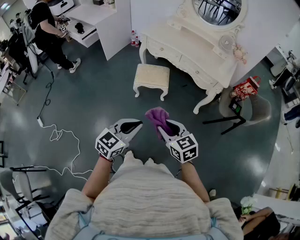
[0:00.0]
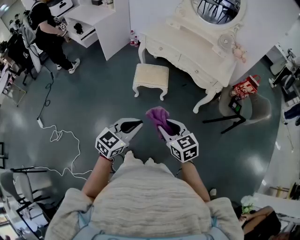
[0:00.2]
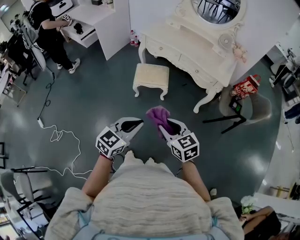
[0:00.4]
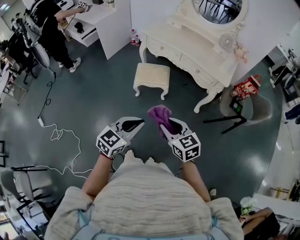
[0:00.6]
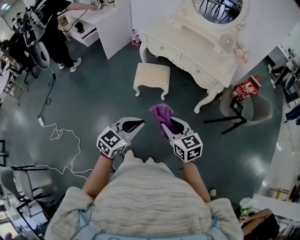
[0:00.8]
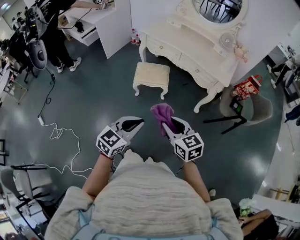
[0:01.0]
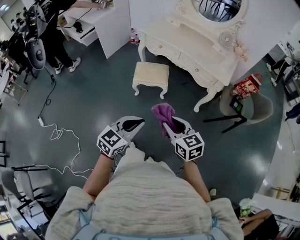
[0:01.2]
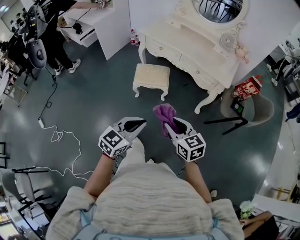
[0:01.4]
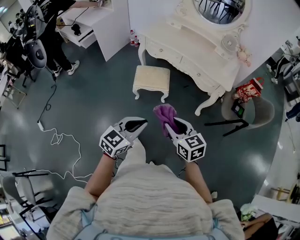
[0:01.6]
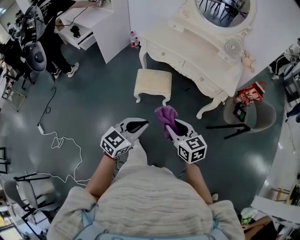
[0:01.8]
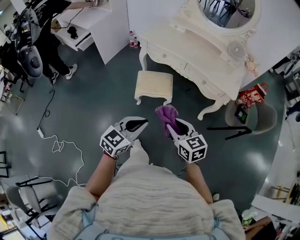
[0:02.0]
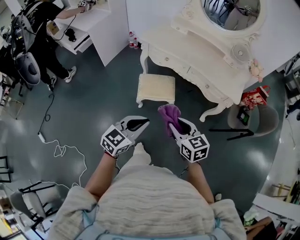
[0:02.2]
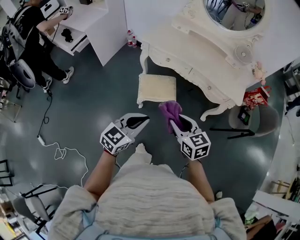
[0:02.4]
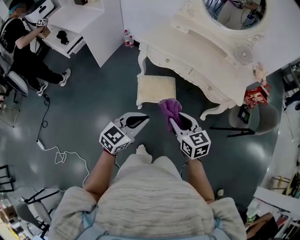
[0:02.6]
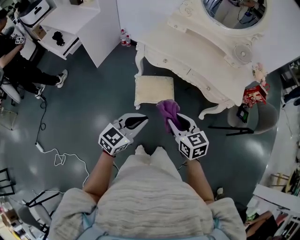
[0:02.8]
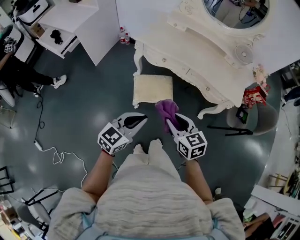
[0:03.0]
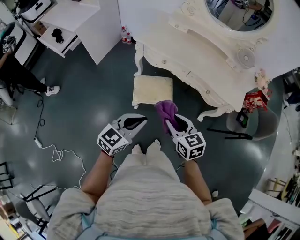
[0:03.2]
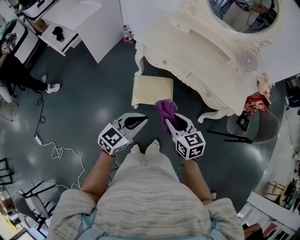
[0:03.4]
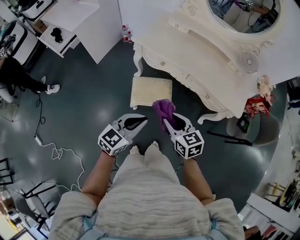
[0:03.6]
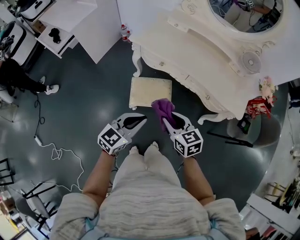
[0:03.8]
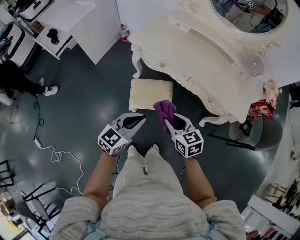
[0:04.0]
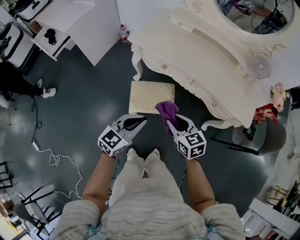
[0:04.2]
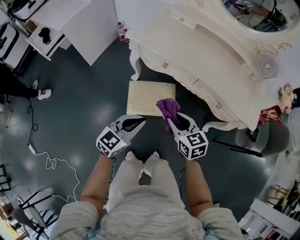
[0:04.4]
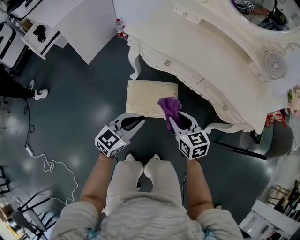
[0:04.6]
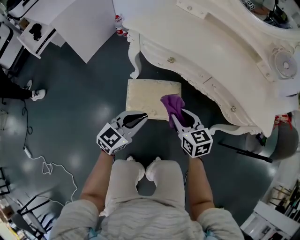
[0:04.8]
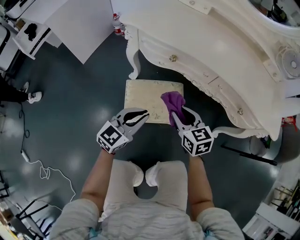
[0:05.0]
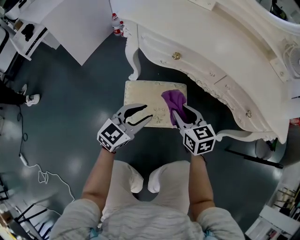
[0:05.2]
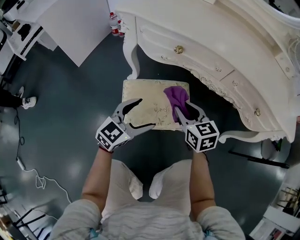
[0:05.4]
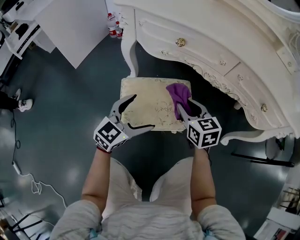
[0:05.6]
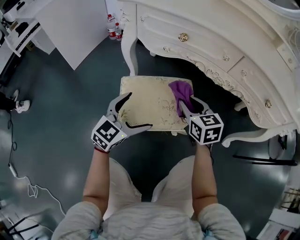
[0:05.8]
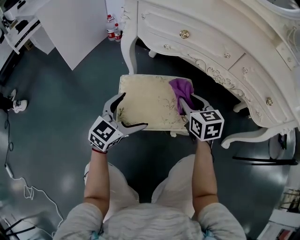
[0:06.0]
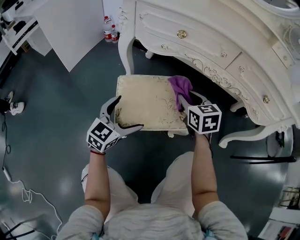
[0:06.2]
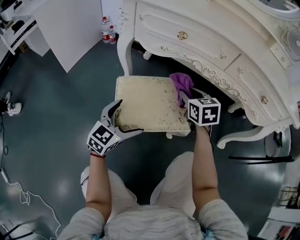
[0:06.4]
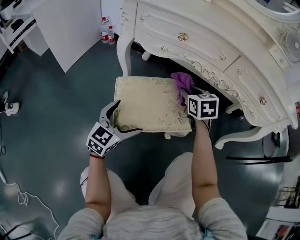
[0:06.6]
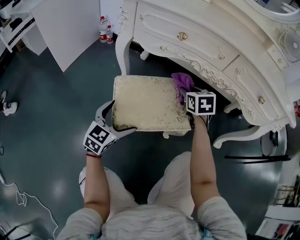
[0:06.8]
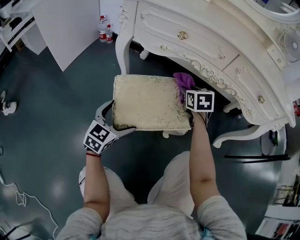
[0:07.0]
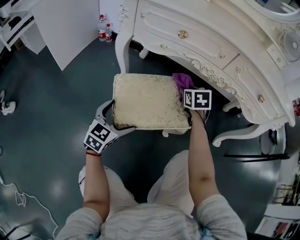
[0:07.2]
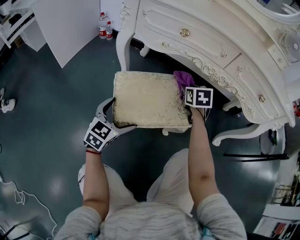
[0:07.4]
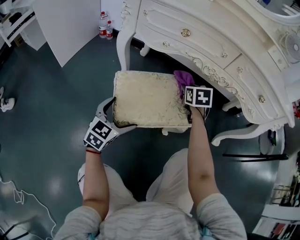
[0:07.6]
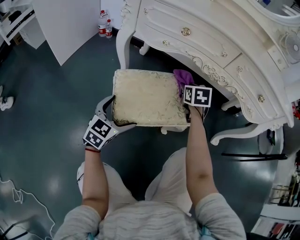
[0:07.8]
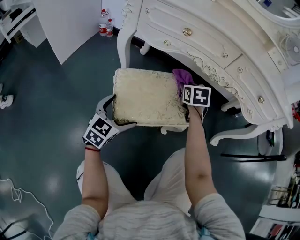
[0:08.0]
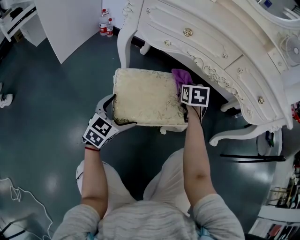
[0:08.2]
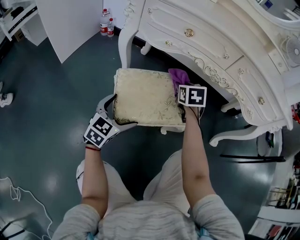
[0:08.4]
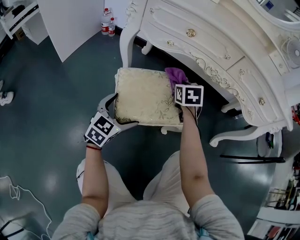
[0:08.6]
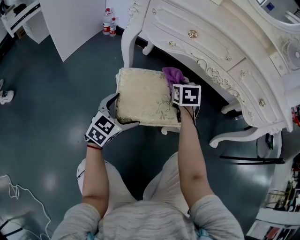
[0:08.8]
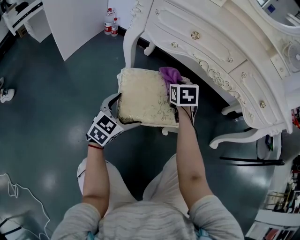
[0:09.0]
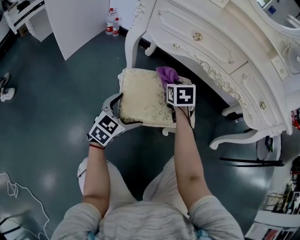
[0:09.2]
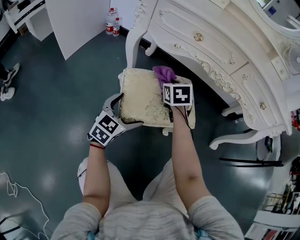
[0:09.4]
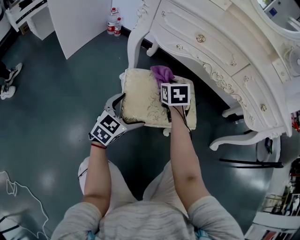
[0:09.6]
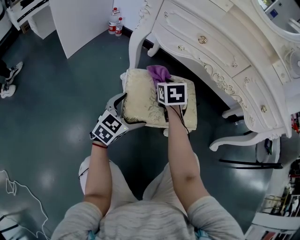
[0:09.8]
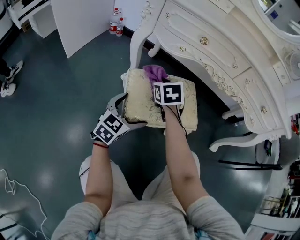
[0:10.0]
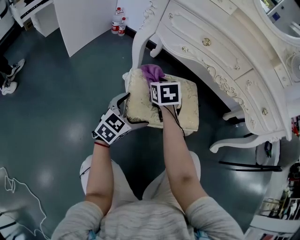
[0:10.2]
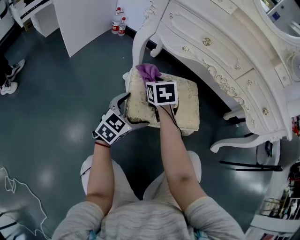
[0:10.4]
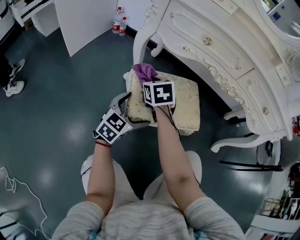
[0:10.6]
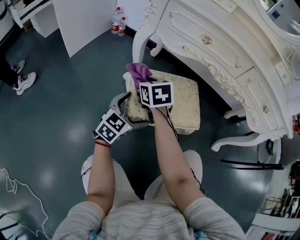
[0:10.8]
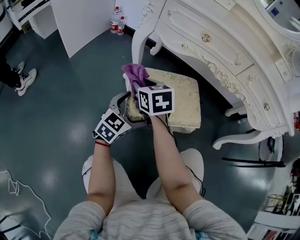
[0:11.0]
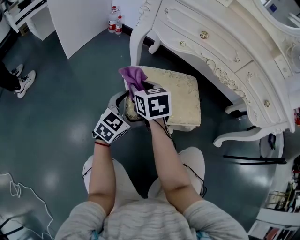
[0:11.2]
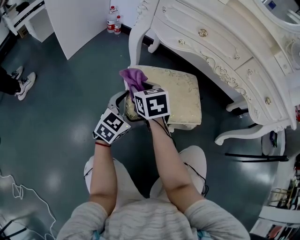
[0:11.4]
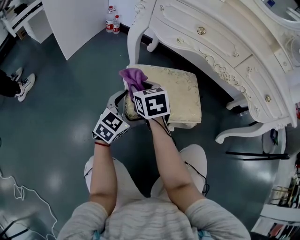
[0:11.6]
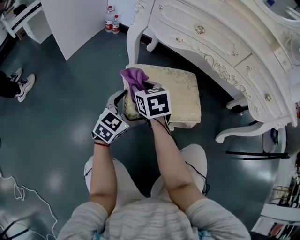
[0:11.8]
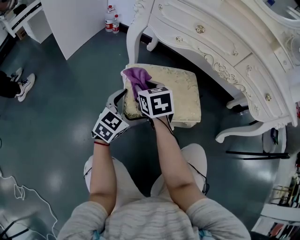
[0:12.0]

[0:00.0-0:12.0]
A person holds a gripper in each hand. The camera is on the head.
0:00.0 to 0:01.6: The grippers both shift forward by roughly 10 cm.
0:01.6 to 0:03.0: Both grippers move forward and to the left, approximately 25 cm.
0:03.0 to 0:04.4: The left gripper heads downward and forward, covering approximately 20 cm, while the right gripper heads forward and downward, covering about 25 cm.
0:04.4 to 0:06.0: The left gripper heads downward, covering approximately 35 cm, and opens. The right gripper goes some 35 cm downward and forward.
0:06.0 to 0:07.6: The left gripper travels downward by about 5 cm; the right gripper goes some 10 cm forward and downward, and rotates approximately 20 degrees.
0:07.6 to 0:09.0: The right gripper goes some 10 cm to the left.
0:09.0 to 0:10.4: The right gripper is displaced to the left by about 15 cm.
0:10.4 to 0:12.0: The right gripper goes some 5 cm backward.

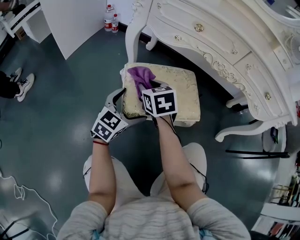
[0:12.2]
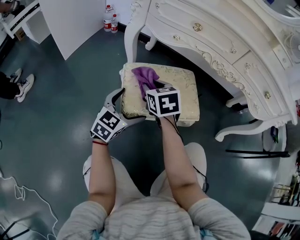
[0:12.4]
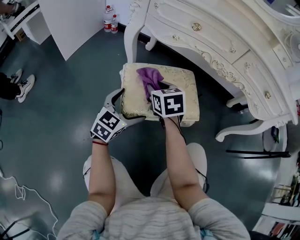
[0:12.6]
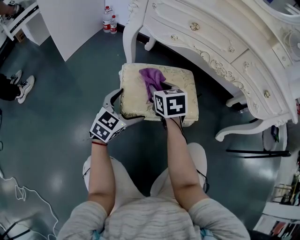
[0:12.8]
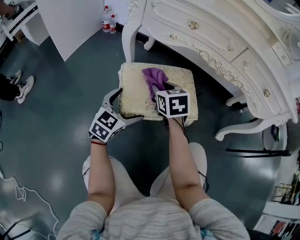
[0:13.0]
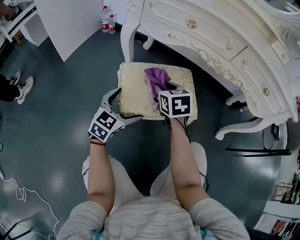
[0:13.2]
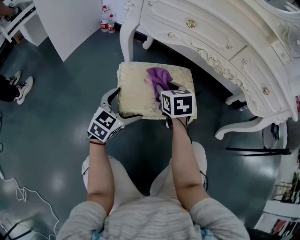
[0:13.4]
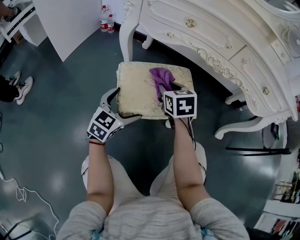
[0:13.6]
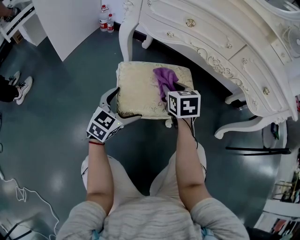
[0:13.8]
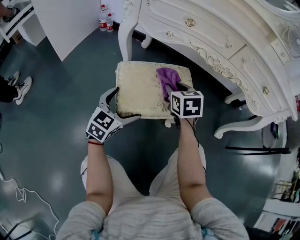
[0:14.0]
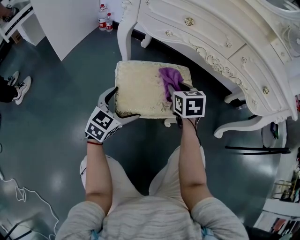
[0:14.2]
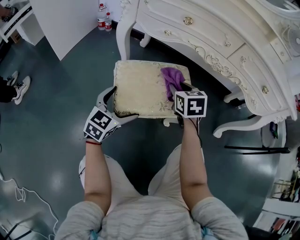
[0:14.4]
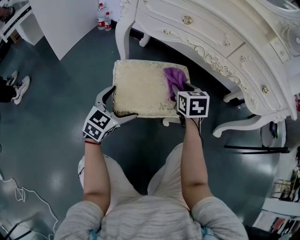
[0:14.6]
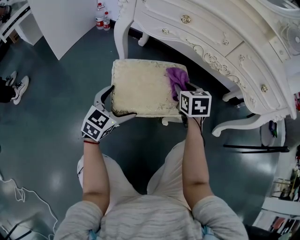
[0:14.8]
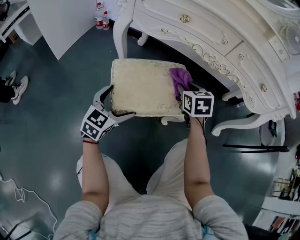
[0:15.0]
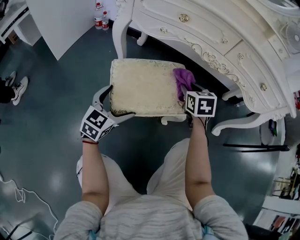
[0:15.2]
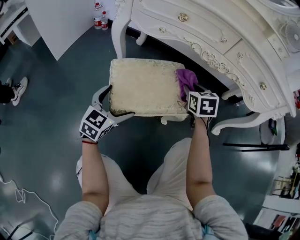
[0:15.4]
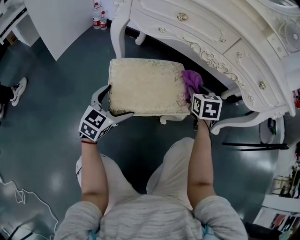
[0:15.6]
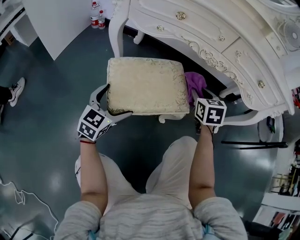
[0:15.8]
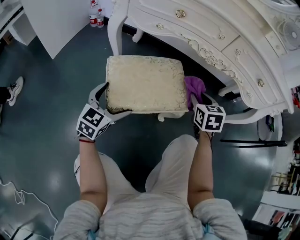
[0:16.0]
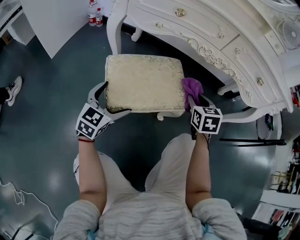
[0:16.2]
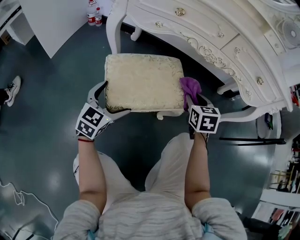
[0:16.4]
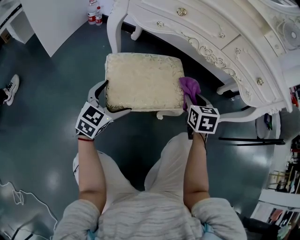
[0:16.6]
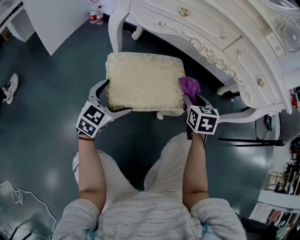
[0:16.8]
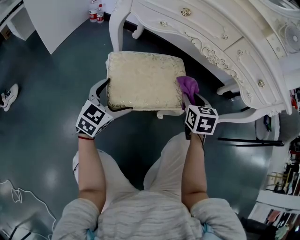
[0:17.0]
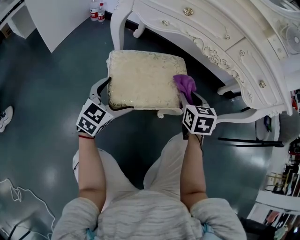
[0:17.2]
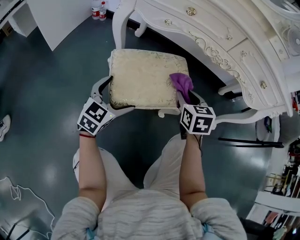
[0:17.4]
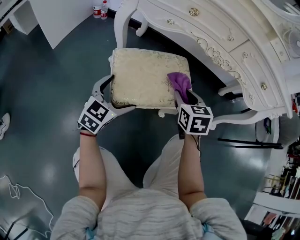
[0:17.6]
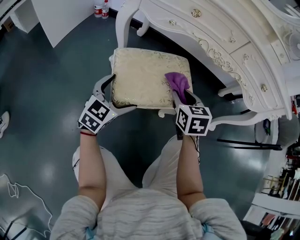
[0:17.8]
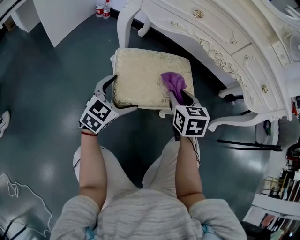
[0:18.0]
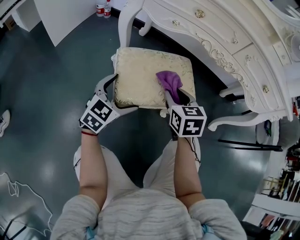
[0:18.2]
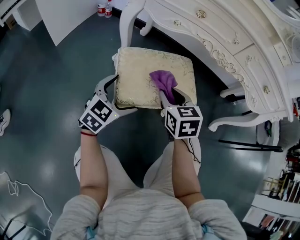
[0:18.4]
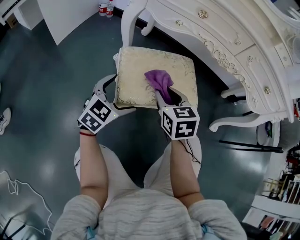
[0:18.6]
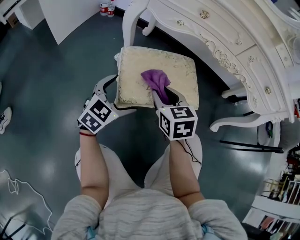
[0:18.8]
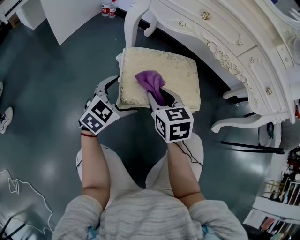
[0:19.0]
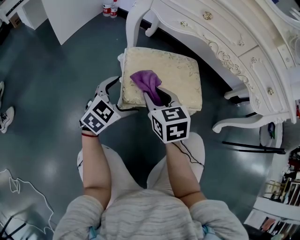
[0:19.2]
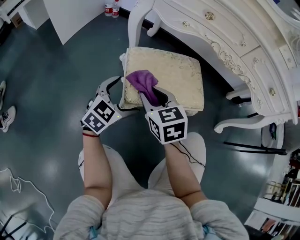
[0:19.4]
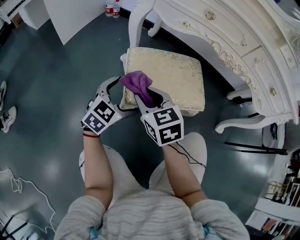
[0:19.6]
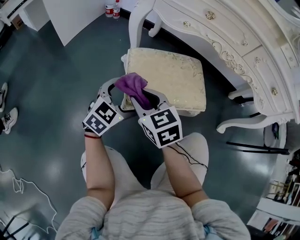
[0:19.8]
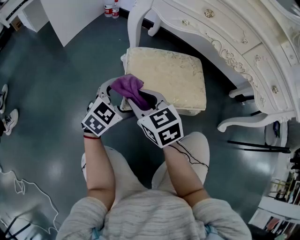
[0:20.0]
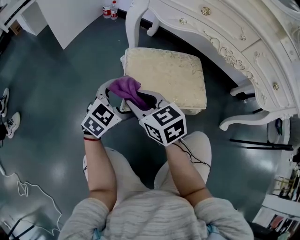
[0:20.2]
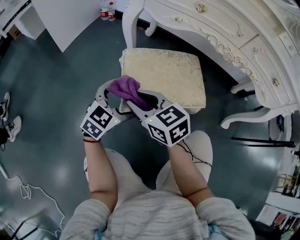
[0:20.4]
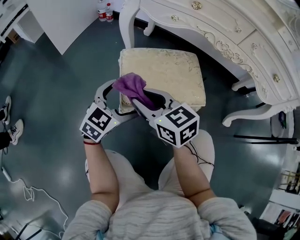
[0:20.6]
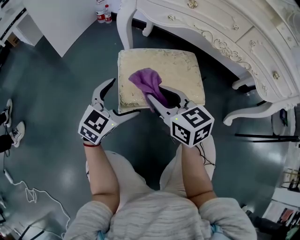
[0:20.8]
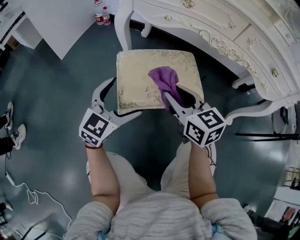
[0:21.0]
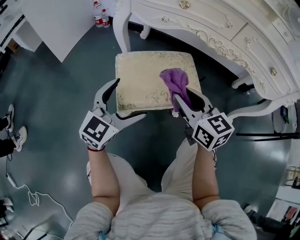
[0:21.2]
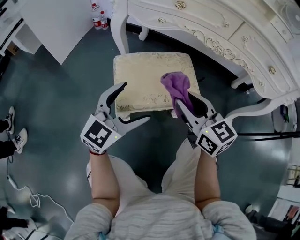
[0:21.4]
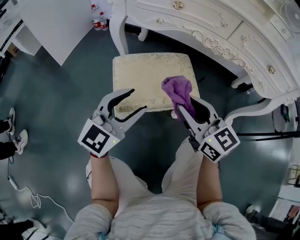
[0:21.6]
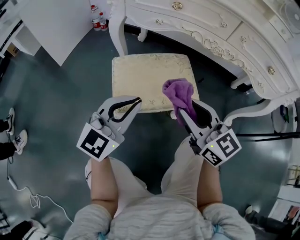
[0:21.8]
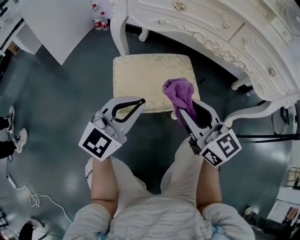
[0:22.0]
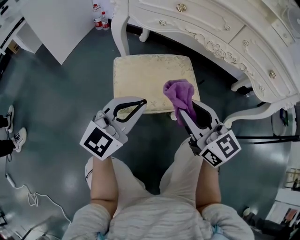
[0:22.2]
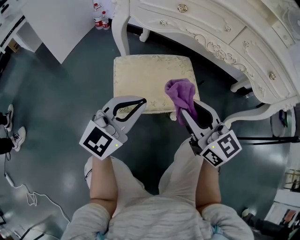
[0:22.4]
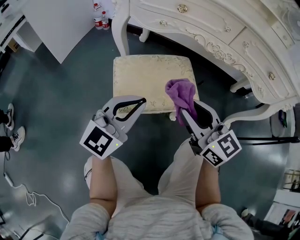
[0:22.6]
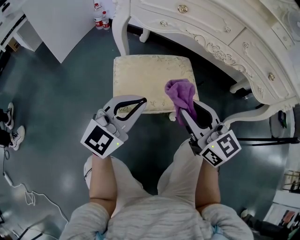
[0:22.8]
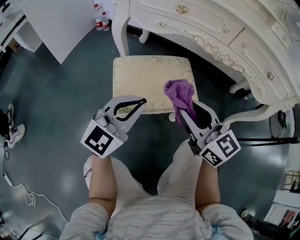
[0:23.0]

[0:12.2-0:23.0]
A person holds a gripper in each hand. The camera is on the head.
0:12.2 to 0:13.8: The right gripper heads to the right, covering approximately 10 cm.
0:13.8 to 0:15.2: The right gripper is displaced to the right by roughly 10 cm.
0:15.2 to 0:16.8: The right gripper moves to the right, approximately 5 cm.
0:16.8 to 0:18.4: The right gripper travels to the left and backward by approximately 15 cm.
0:18.4 to 0:20.0: The right gripper travels to the left and backward by approximately 15 cm, and swivels approximately 30 degrees.
0:20.0 to 0:21.4: The right gripper goes about 20 cm to the right and upward, and changes its angle by approximately 20 degrees. Meanwhile the left gripper shifts approximately 10 cm upward and to the right.
0:21.4 to 0:23.0: The left gripper closes up.

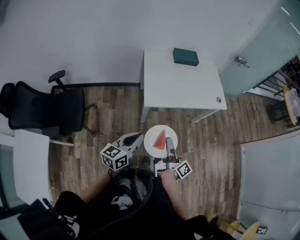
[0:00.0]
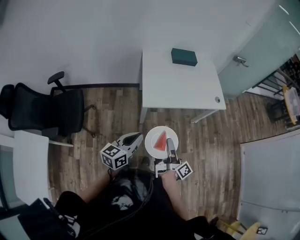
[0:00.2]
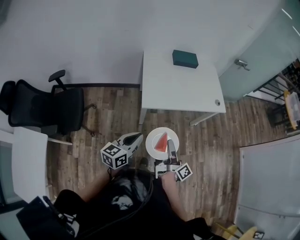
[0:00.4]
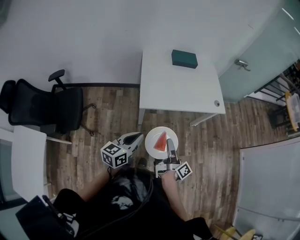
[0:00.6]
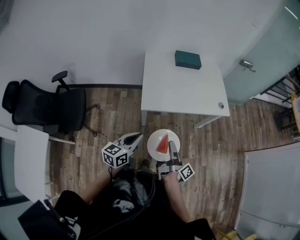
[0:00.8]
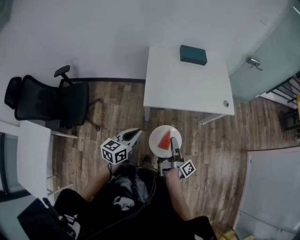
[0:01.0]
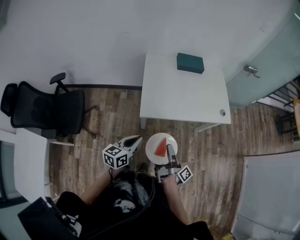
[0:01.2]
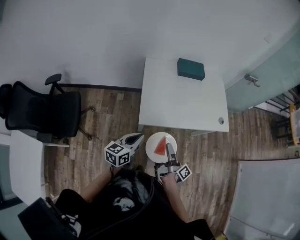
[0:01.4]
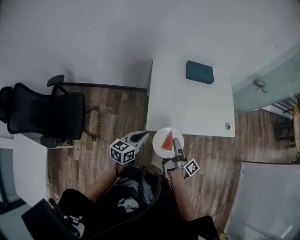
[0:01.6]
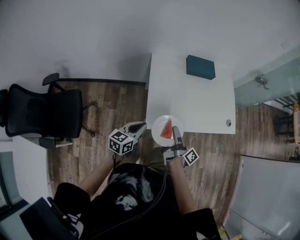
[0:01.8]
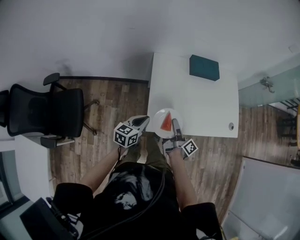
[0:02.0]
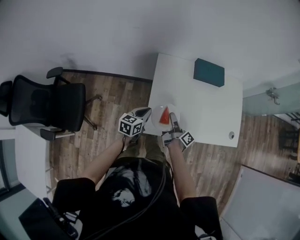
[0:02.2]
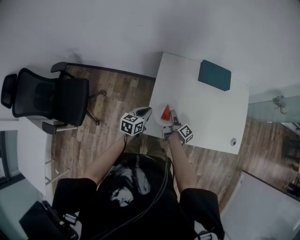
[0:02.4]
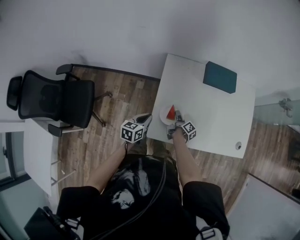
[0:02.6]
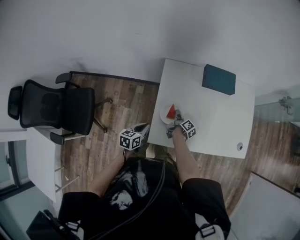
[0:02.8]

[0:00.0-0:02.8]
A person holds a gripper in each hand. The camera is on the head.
0:00.0 to 0:01.4: The left gripper shifts approximately 15 cm forward. Meanwhile the right gripper moves forward and downward, roughly 15 cm.
0:01.4 to 0:02.8: The left gripper goes some 30 cm forward and downward, and swivels approximately 20 degrees. Meanwhile the right gripper shifts some 50 cm forward and downward, and tilts its fingers approximately 30 degrees downward.
